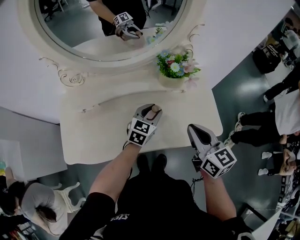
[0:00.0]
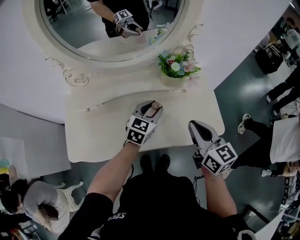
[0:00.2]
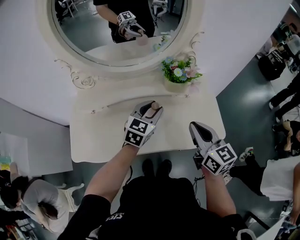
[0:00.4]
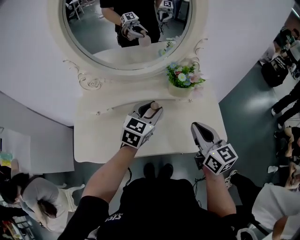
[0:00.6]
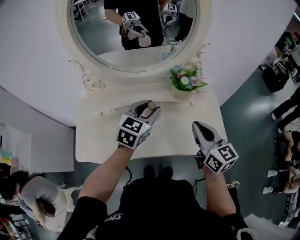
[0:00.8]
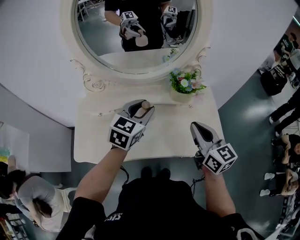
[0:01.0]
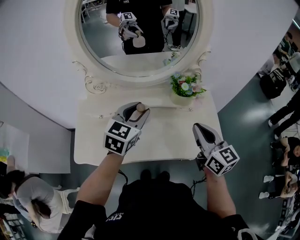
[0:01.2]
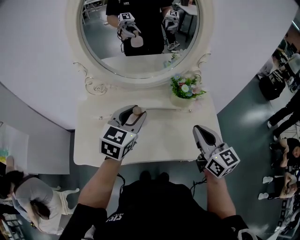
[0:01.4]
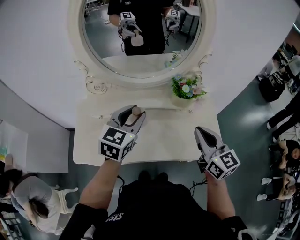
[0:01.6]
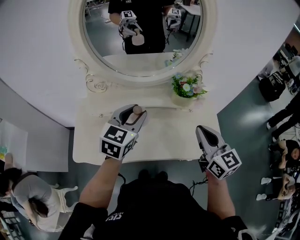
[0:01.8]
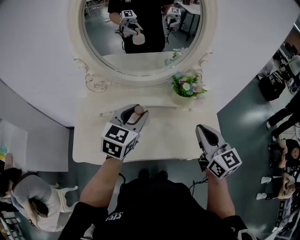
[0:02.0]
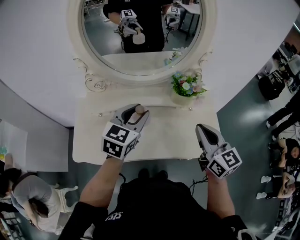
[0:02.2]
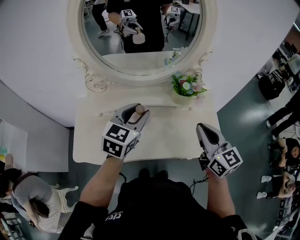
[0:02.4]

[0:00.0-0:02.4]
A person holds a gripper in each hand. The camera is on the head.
0:00.0 to 0:01.2: The right gripper travels upward by about 5 cm, while the left gripper travels upward and to the left by roughly 25 cm.
0:01.2 to 0:02.4: The grippers move only a little.

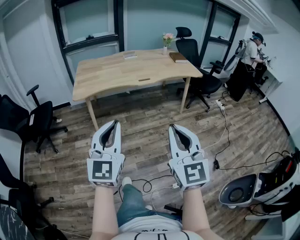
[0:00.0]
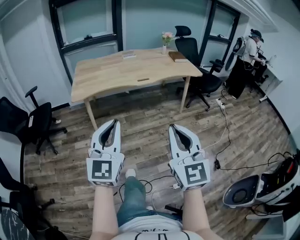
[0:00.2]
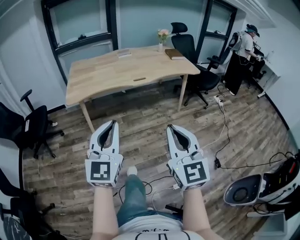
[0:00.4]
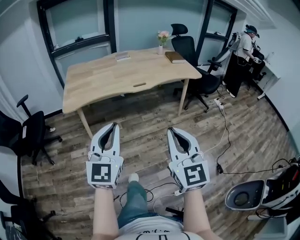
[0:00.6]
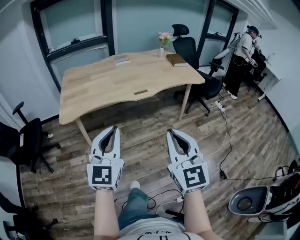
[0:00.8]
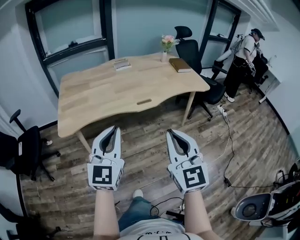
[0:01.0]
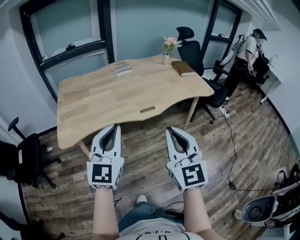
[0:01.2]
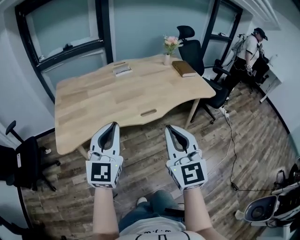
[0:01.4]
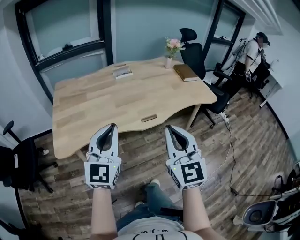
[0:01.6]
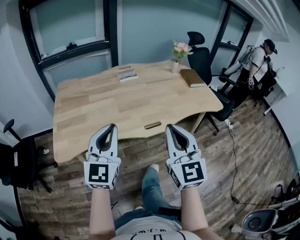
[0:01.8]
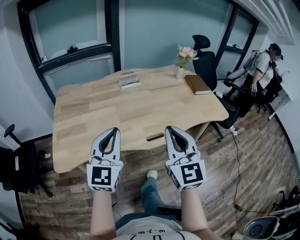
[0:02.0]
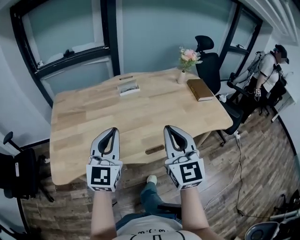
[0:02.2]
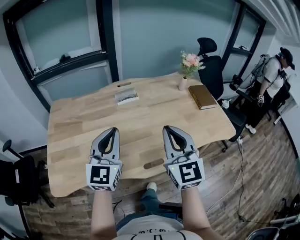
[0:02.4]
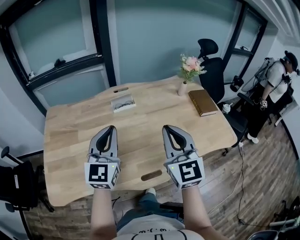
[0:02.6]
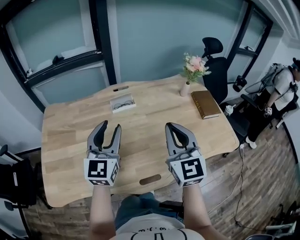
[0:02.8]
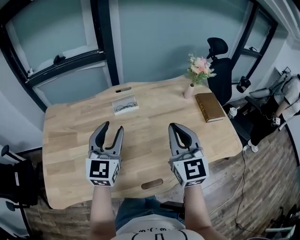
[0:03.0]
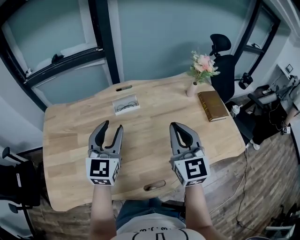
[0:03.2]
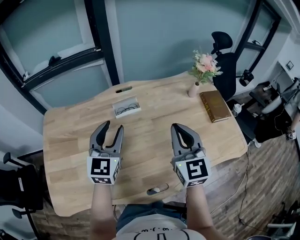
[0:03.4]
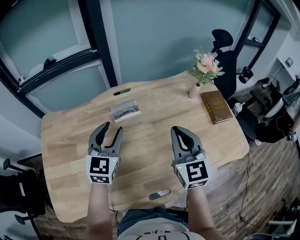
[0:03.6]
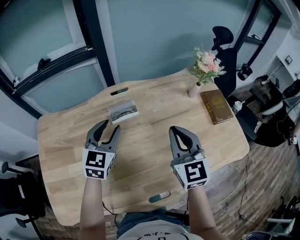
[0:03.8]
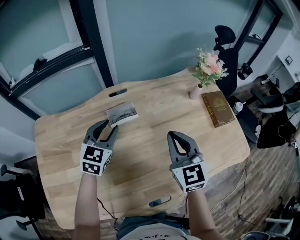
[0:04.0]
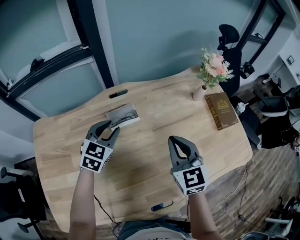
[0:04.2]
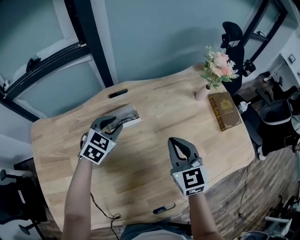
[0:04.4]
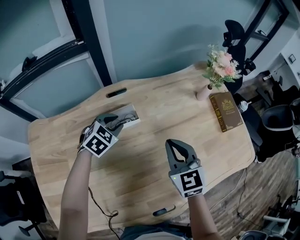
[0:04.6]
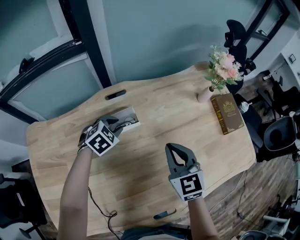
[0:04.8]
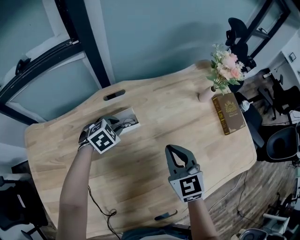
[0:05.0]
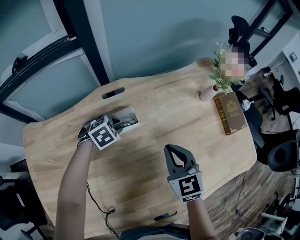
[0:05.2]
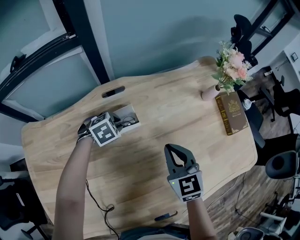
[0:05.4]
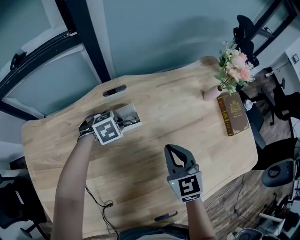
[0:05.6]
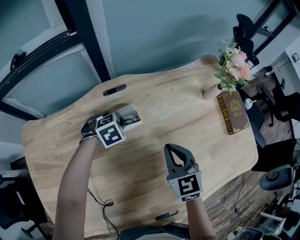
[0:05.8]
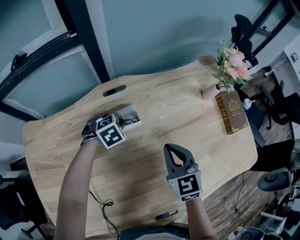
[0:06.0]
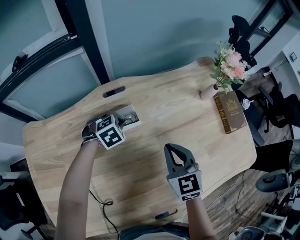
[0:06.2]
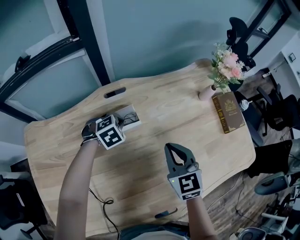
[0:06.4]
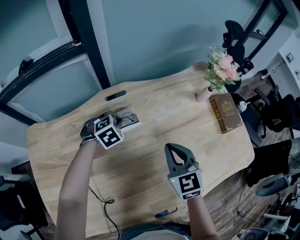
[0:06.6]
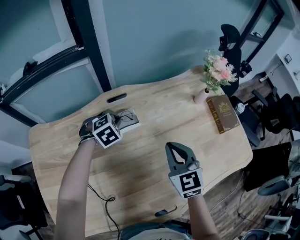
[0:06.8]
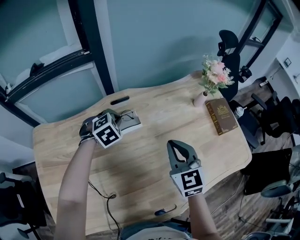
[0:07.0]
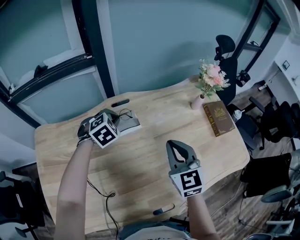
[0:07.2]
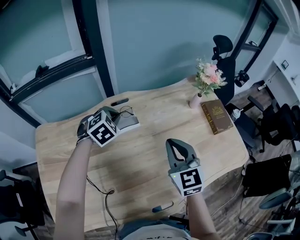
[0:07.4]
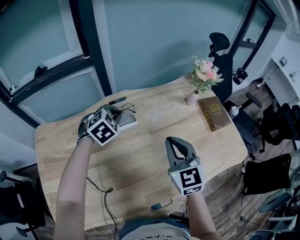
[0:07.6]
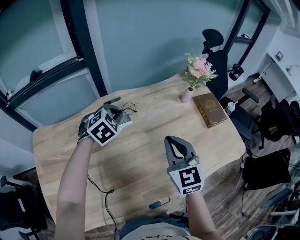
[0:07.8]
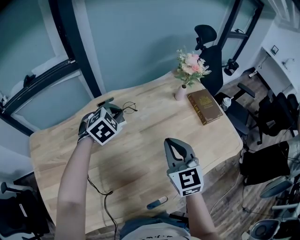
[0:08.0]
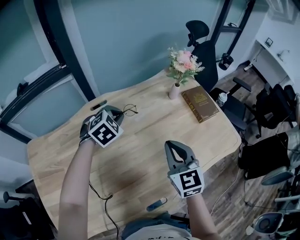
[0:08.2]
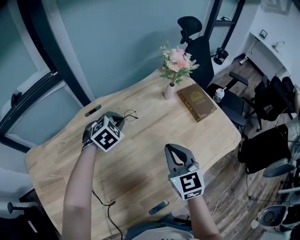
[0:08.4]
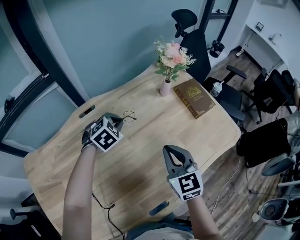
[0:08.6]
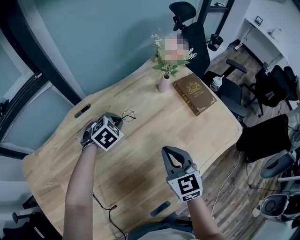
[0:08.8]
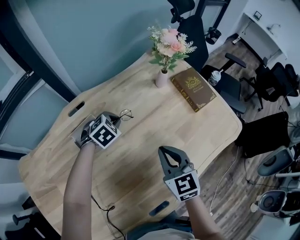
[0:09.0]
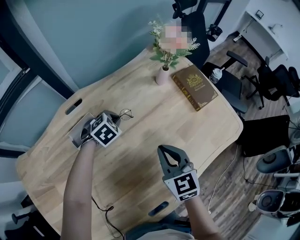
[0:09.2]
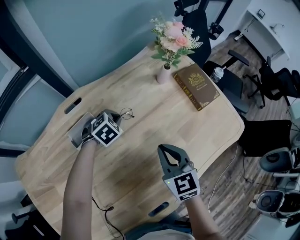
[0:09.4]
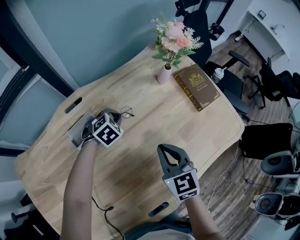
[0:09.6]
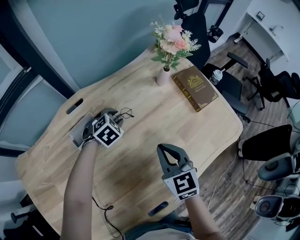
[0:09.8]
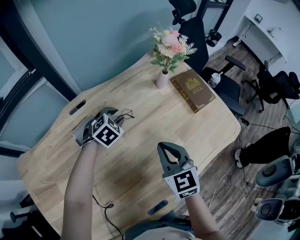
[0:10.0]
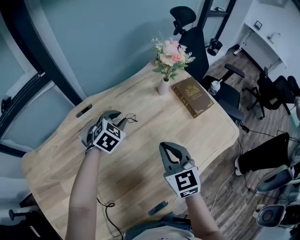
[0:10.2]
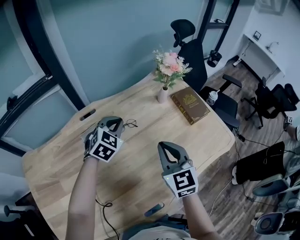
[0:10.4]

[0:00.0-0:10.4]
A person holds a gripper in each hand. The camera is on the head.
0:00.0 to 0:01.4: Both grippers are carried forward, approximately 50 cm.
0:01.4 to 0:03.0: Both grippers are carried forward, about 50 cm. The left gripper opens.
0:03.0 to 0:04.4: Both grippers travel together forward and downward, roughly 25 cm. The left gripper tilts its fingers some 40 degrees downward.
0:04.4 to 0:06.0: The right gripper moves downward, approximately 5 cm. Meanwhile the left gripper heads downward and forward, covering roughly 15 cm, changes its angle by some 30 degrees, and closes its fingers.
0:06.0 to 0:07.4: The left gripper travels upward by roughly 20 cm, and rotates about 20 degrees, while the right gripper shifts approximately 15 cm upward and backward.
0:07.4 to 0:09.0: The left gripper shifts about 25 cm to the right, downward and forward. Meanwhile the right gripper moves downward and to the right, approximately 15 cm.
0:09.0 to 0:10.4: The right gripper is displaced upward by approximately 10 cm. Meanwhile the left gripper travels upward by about 15 cm, changes its angle by roughly 30 degrees, and opens and closes again.

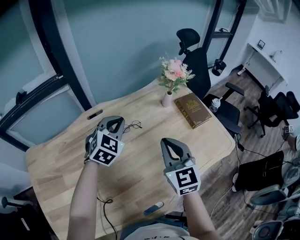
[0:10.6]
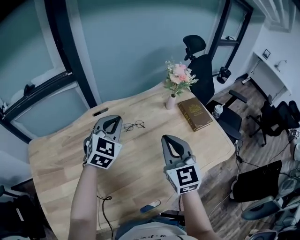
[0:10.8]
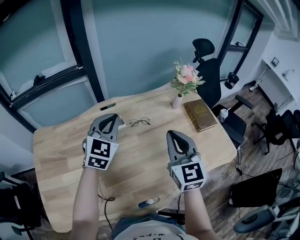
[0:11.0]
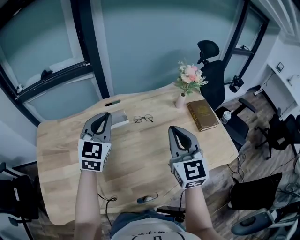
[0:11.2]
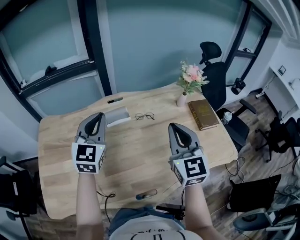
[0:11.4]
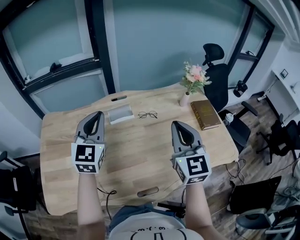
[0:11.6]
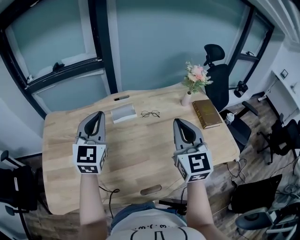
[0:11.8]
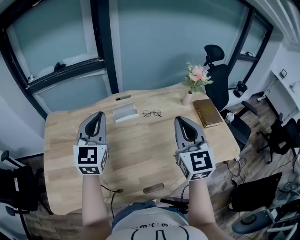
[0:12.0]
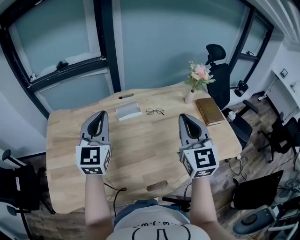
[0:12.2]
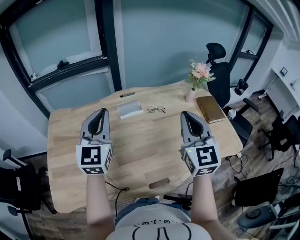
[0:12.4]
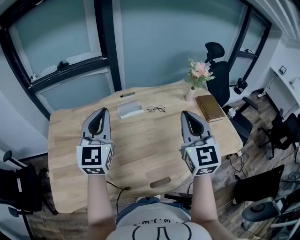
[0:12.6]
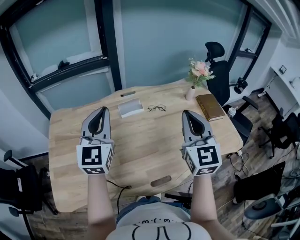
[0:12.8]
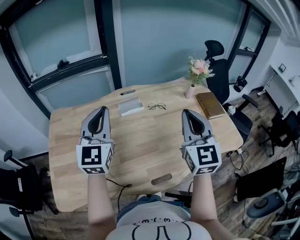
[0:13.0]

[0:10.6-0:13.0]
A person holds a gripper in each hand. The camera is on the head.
0:10.6 to 0:11.8: The left gripper heads backward, to the left and upward, covering some 25 cm, and changes its angle by some 40 degrees; the right gripper shifts approximately 10 cm upward and backward.
0:11.8 to 0:13.0: The right gripper shifts by about 5 cm; the left gripper heads backward, covering roughly 5 cm.

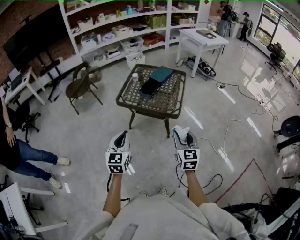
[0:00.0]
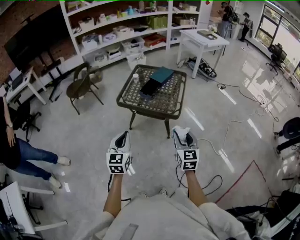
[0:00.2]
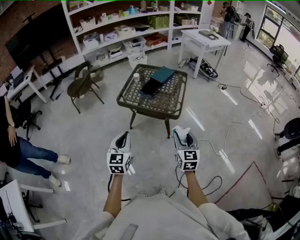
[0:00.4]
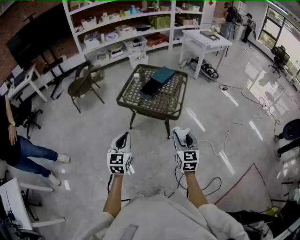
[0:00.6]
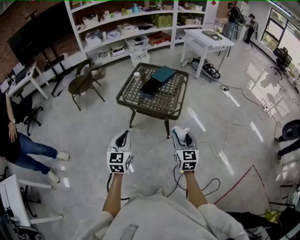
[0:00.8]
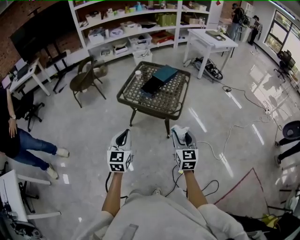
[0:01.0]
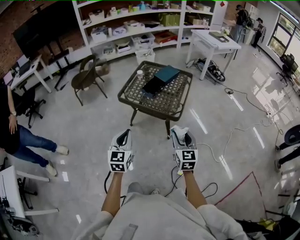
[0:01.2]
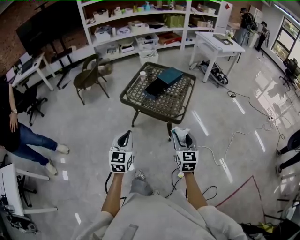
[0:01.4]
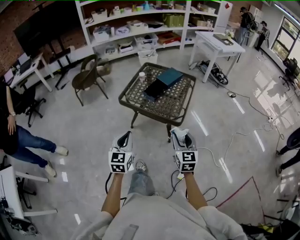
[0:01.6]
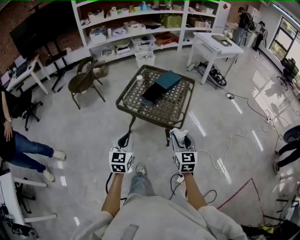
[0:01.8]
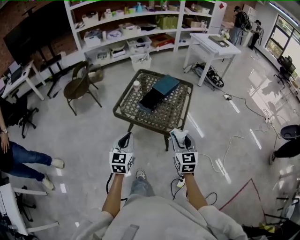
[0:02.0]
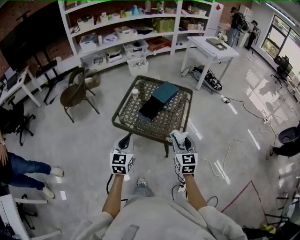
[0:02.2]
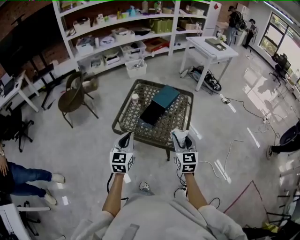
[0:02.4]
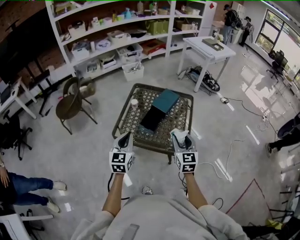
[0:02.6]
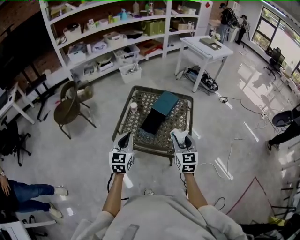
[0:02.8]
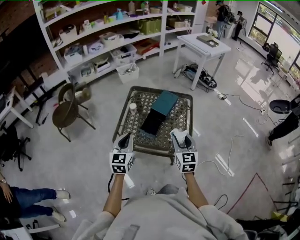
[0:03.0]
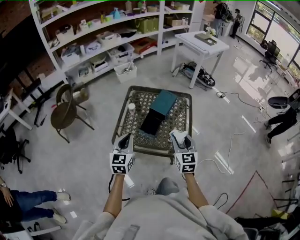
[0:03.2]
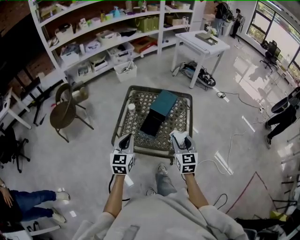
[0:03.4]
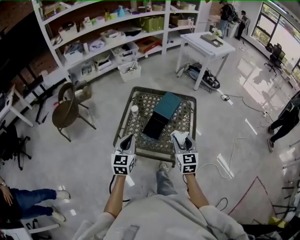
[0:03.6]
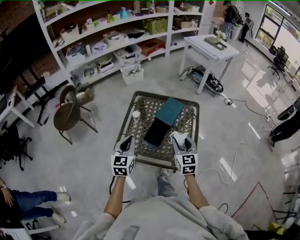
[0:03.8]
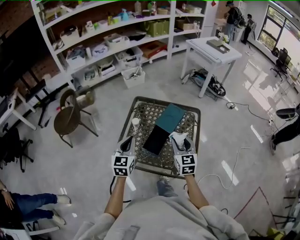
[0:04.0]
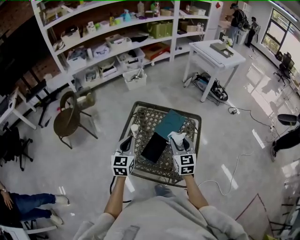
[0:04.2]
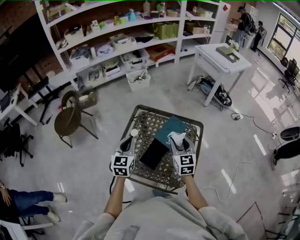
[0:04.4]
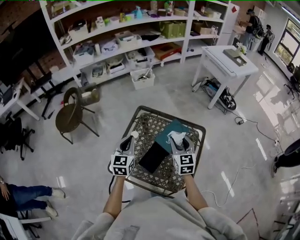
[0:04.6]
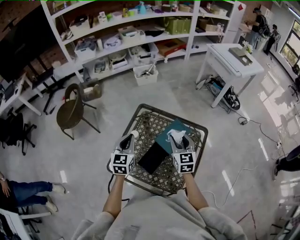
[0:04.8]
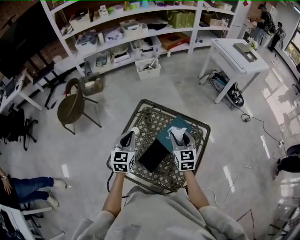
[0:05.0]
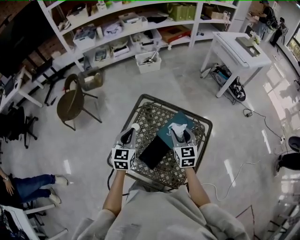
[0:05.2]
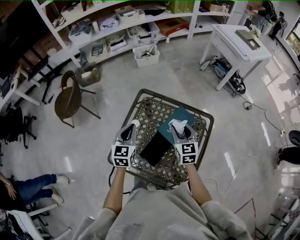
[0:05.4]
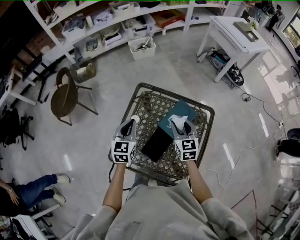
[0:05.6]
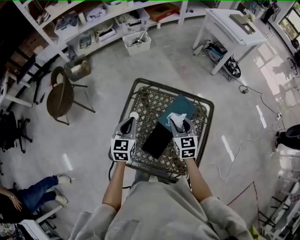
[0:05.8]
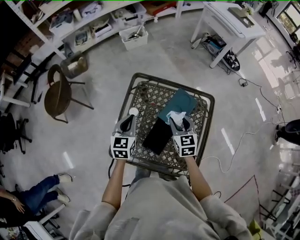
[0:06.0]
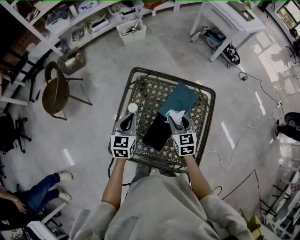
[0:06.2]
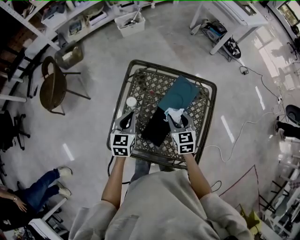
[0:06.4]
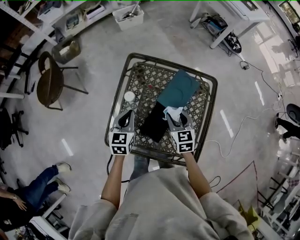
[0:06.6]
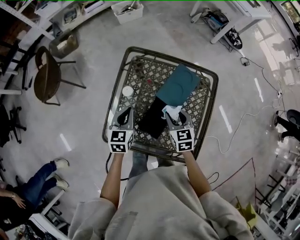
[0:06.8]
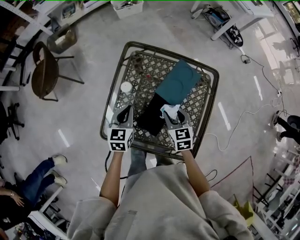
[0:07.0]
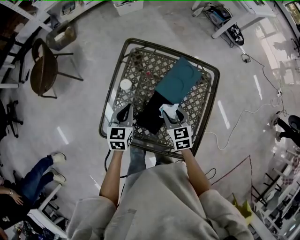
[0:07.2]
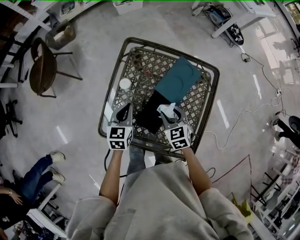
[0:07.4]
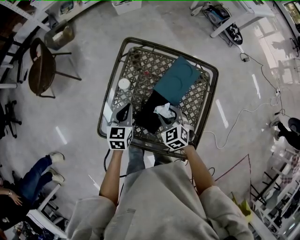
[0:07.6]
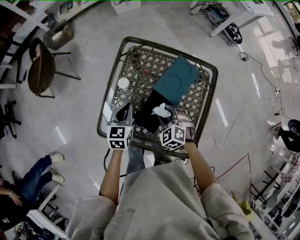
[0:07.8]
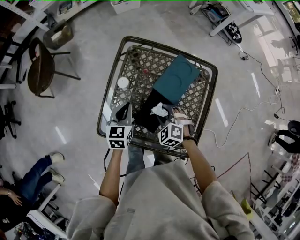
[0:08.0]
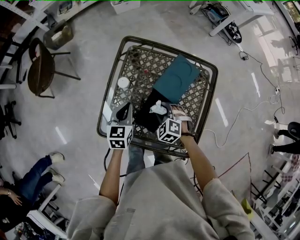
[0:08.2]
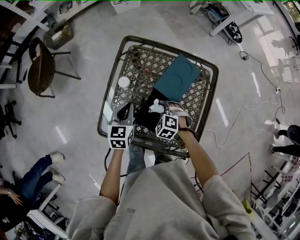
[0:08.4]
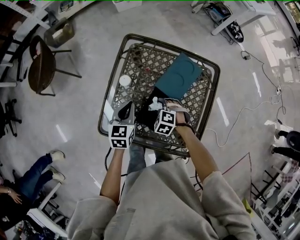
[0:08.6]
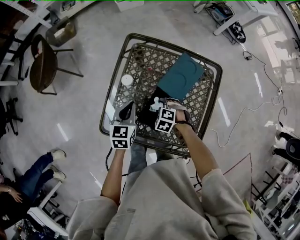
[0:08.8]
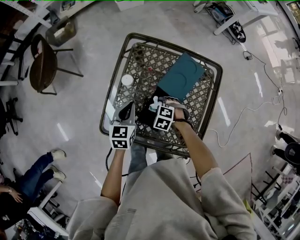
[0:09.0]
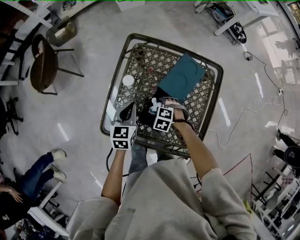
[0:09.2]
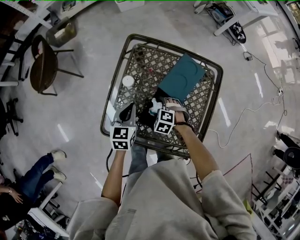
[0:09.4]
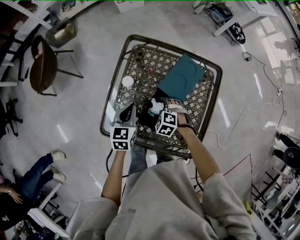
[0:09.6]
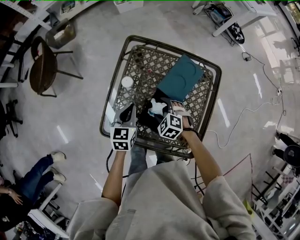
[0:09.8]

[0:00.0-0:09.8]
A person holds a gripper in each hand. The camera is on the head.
0:00.0 to 0:01.4: The right gripper travels forward by about 5 cm, while the left gripper ends up roughly 5 cm from where it was.
0:01.4 to 0:02.8: Both grippers move forward, approximately 35 cm.
0:02.8 to 0:04.2: The two grippers go roughly 20 cm forward.
0:04.2 to 0:05.6: Both grippers move forward and downward, roughly 15 cm.
0:05.6 to 0:07.0: The left gripper travels downward by some 15 cm. The right gripper shifts some 15 cm downward and backward.
0:07.0 to 0:08.4: The right gripper goes roughly 10 cm downward and to the left, and rotates around the line of its fingers by about 50 degrees, counterclockwise from behind.
0:08.4 to 0:09.8: The right gripper opens.
